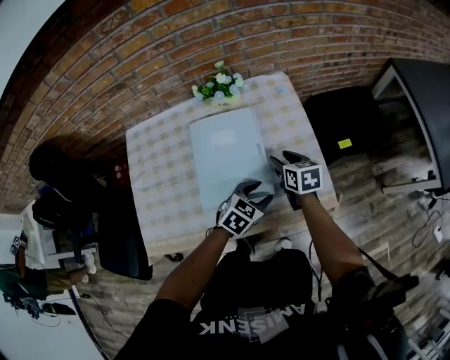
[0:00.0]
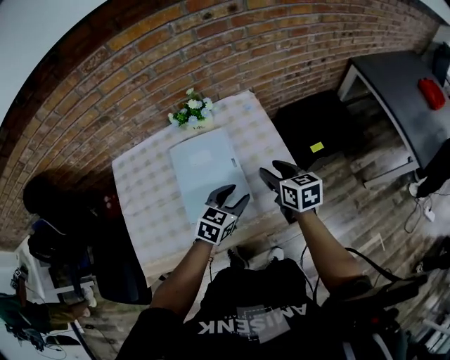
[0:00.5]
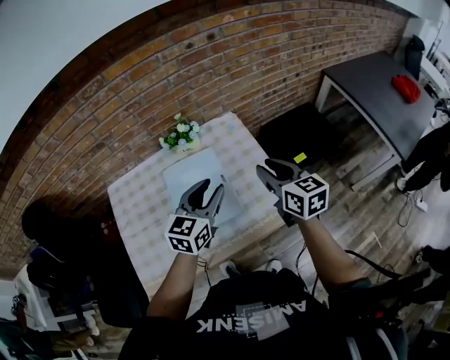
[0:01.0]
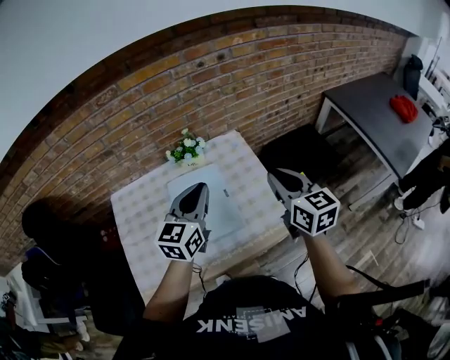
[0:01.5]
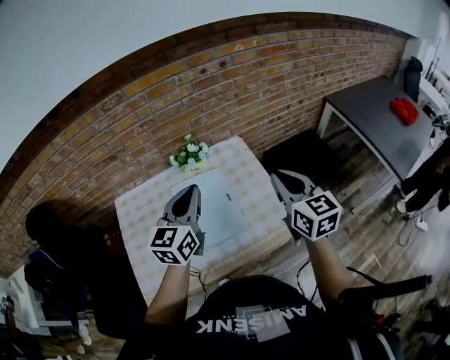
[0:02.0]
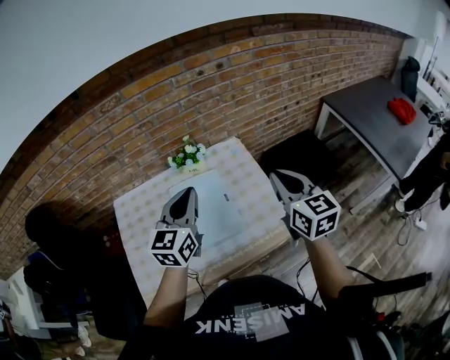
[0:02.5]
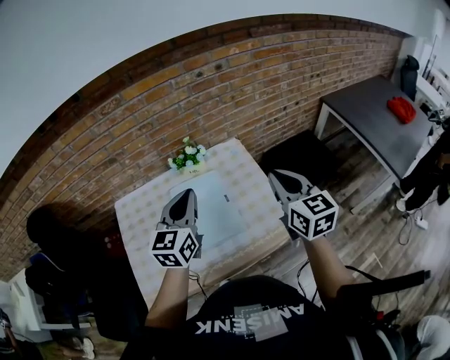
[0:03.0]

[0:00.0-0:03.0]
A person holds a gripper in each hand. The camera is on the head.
0:00.0 to 0:01.5: Both grippers travel together upward, roughly 30 cm. The right gripper rotates about 30 degrees, and closes. Meanwhile the left gripper tilts its fingers approximately 40 degrees upward, and closes.
0:01.5 to 0:03.0: There are only small adjustments of the grippers.

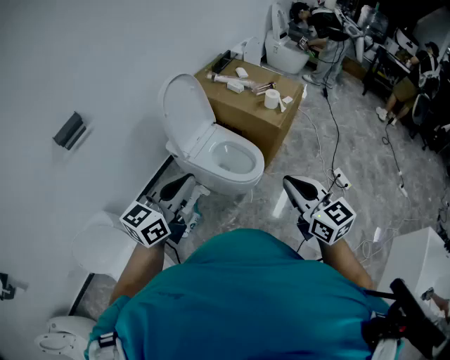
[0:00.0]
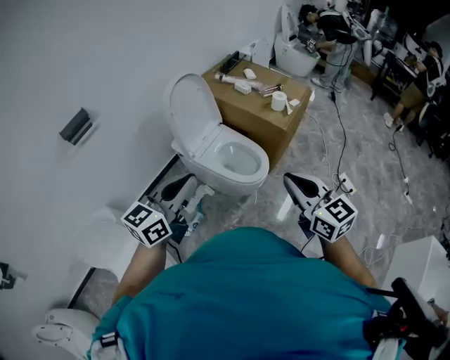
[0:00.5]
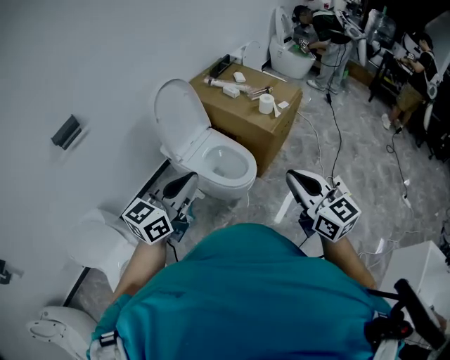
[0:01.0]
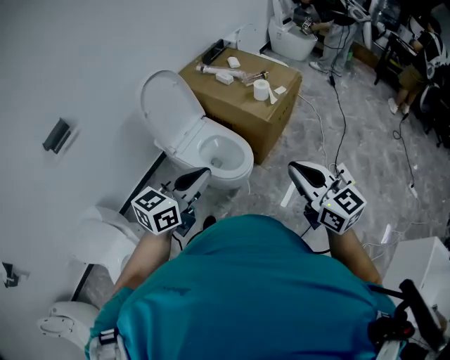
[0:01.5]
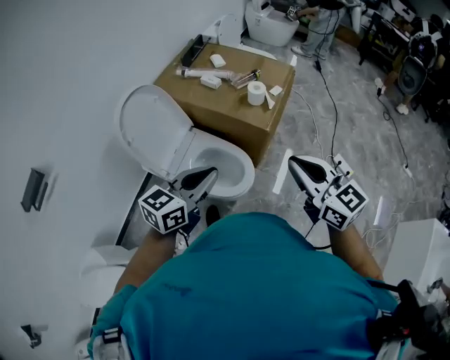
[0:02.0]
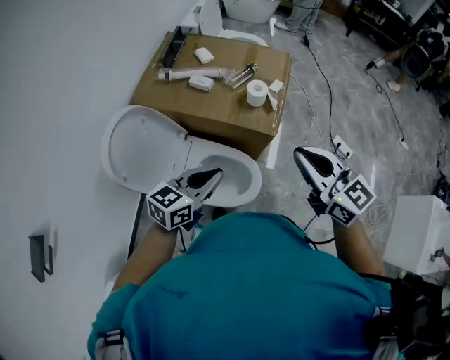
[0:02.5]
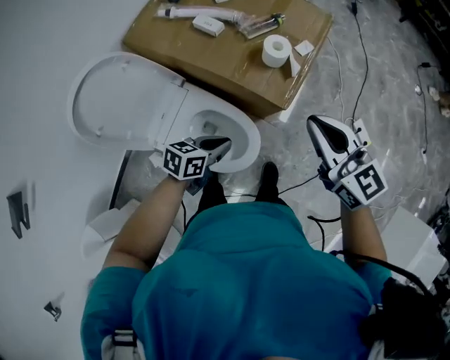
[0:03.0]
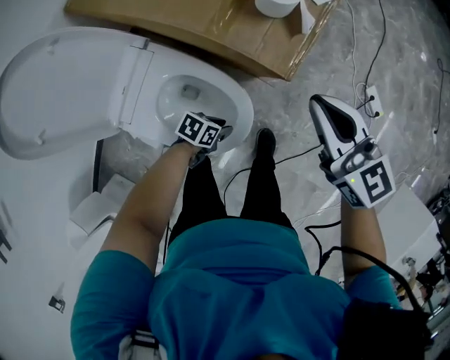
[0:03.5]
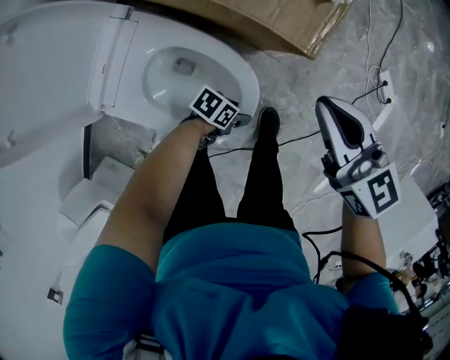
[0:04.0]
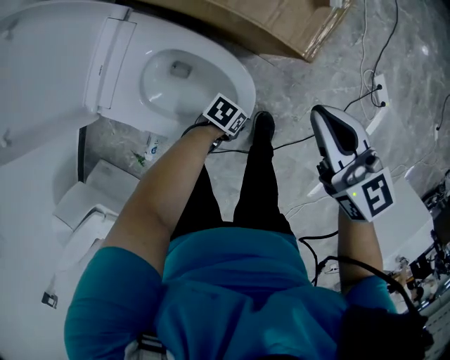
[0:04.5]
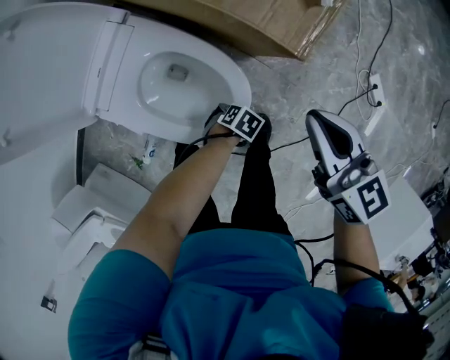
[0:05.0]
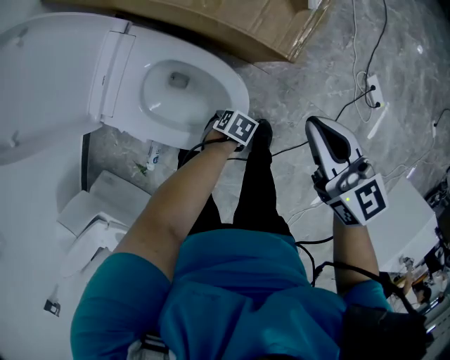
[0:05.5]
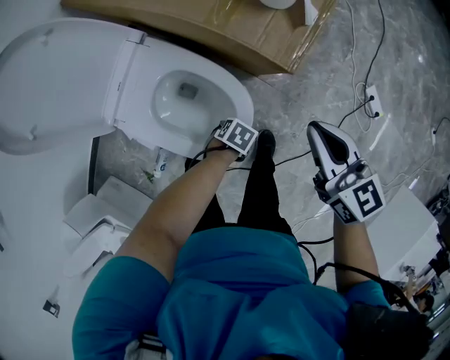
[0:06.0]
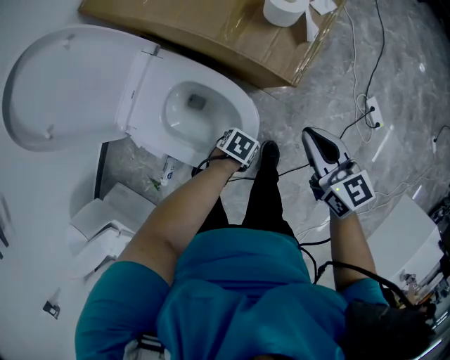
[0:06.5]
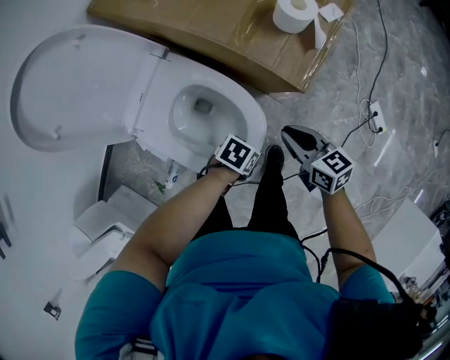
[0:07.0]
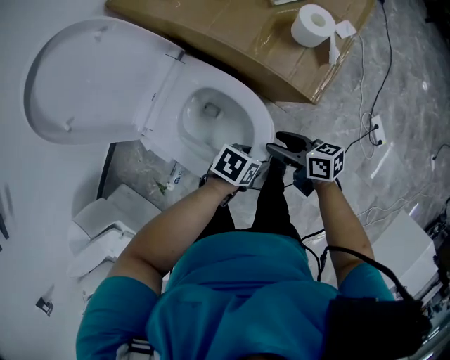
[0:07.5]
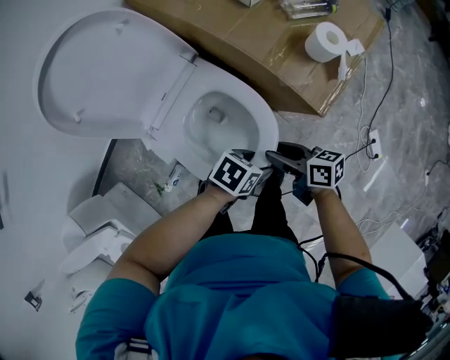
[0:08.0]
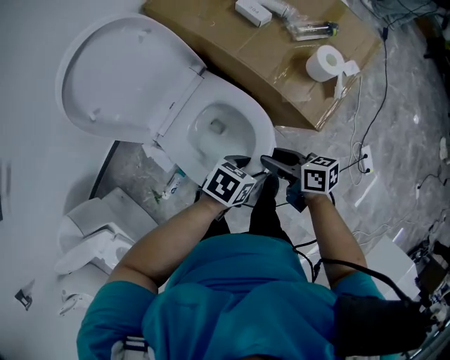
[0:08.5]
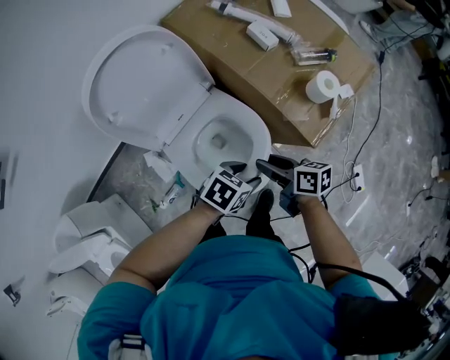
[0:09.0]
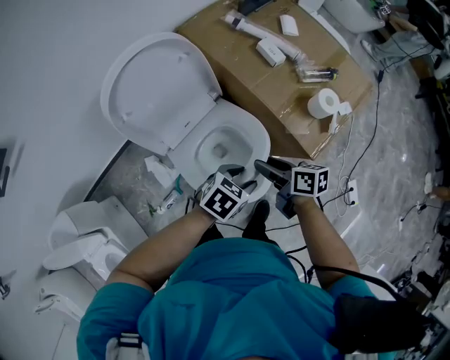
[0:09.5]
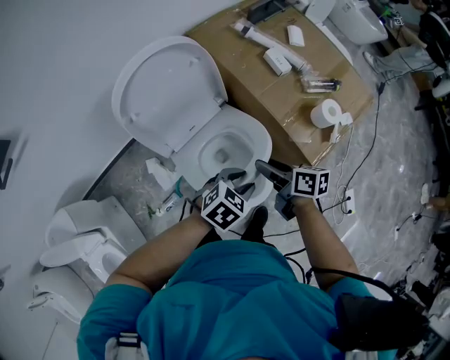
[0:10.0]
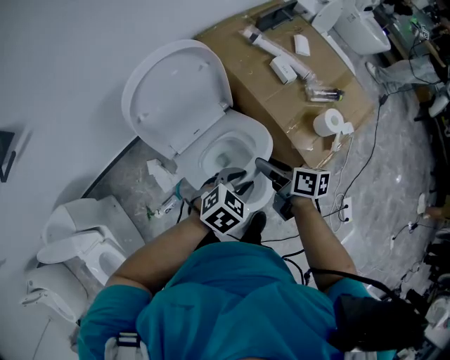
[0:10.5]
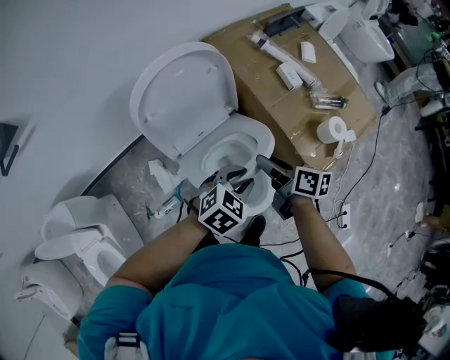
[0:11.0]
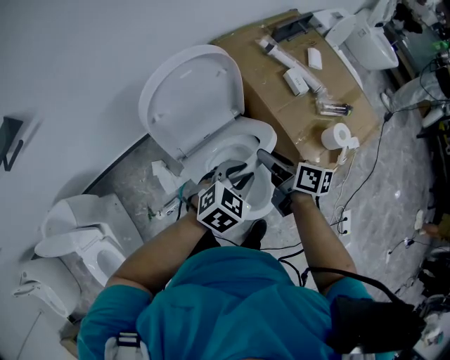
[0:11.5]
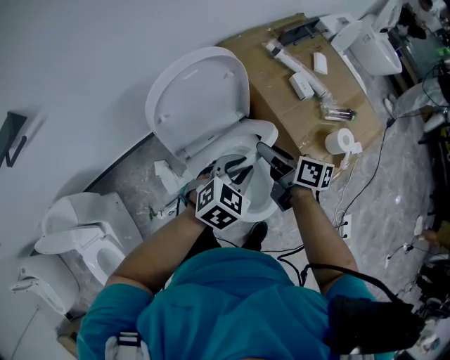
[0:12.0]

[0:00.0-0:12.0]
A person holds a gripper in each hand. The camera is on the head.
0:00.0 to 0:02.0: The left gripper heads forward and to the right, covering some 30 cm, while the right gripper goes roughly 25 cm forward.
0:02.0 to 0:04.0: The left gripper is displaced downward by some 70 cm, changes its angle by approximately 70 degrees, and opens its fingers; the right gripper goes roughly 40 cm downward.
0:04.0 to 0:06.0: The left gripper turns by roughly 20 degrees; the right gripper changes place by about 5 cm.
0:06.0 to 0:08.0: The left gripper heads upward, covering approximately 20 cm, and swivels about 20 degrees, while the right gripper ends up approximately 20 cm from where it was, turns by approximately 40 degrees, and opens.
0:08.0 to 0:10.0: Both grippers travel together upward, approximately 15 cm. The left gripper changes its angle by some 30 degrees, and closes.
0:10.0 to 0:12.0: The left gripper moves to the left, forward and upward, approximately 15 cm, while the right gripper travels forward, to the left and upward by approximately 15 cm.

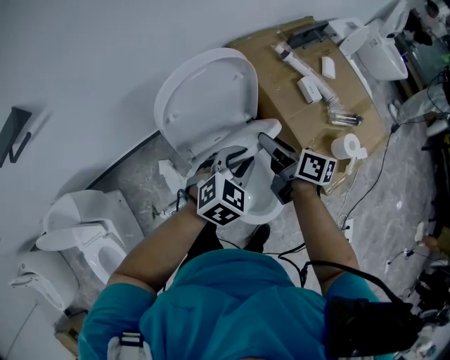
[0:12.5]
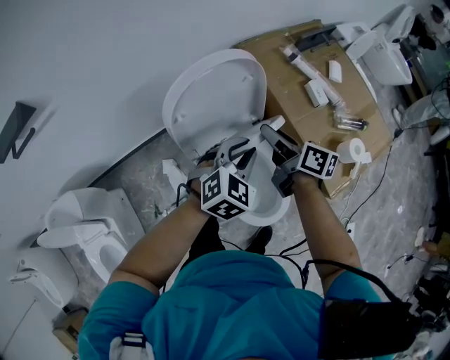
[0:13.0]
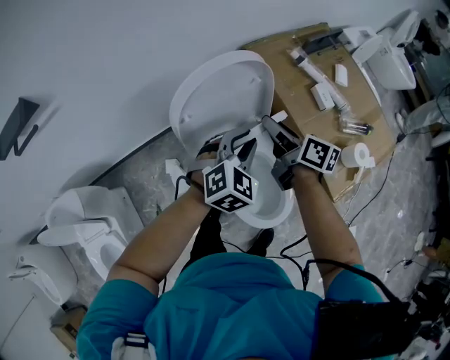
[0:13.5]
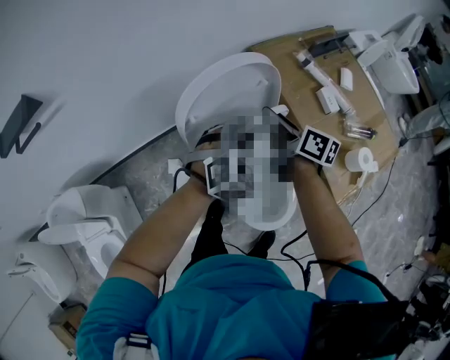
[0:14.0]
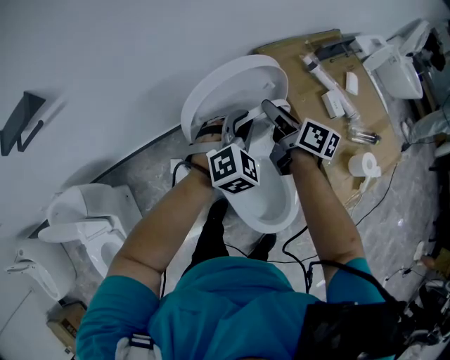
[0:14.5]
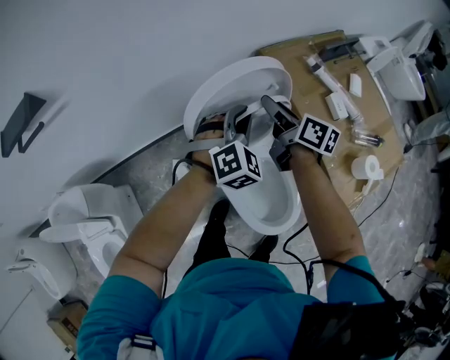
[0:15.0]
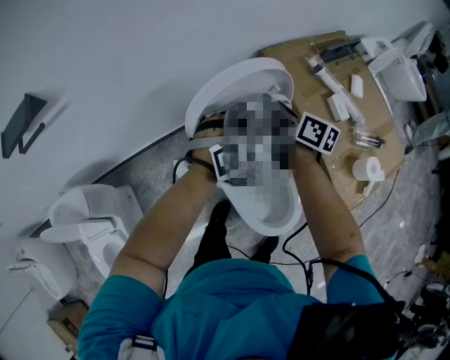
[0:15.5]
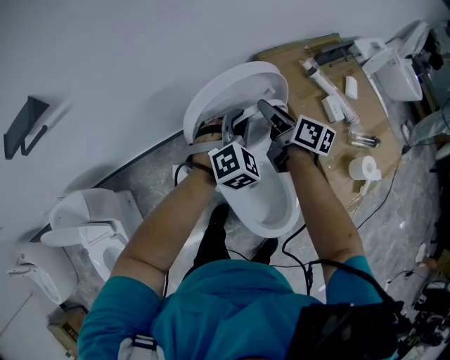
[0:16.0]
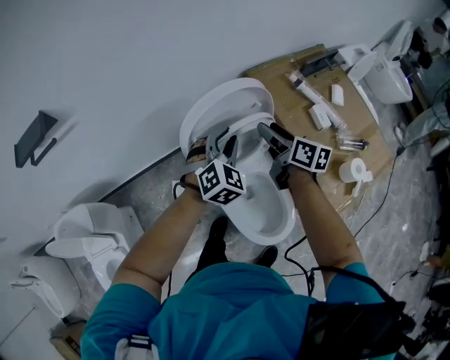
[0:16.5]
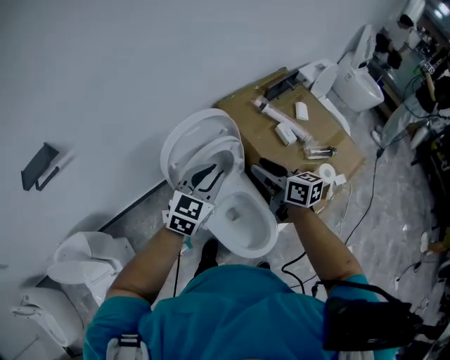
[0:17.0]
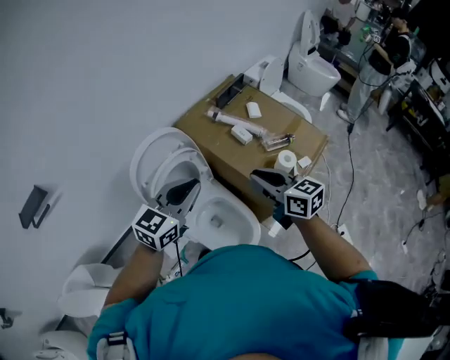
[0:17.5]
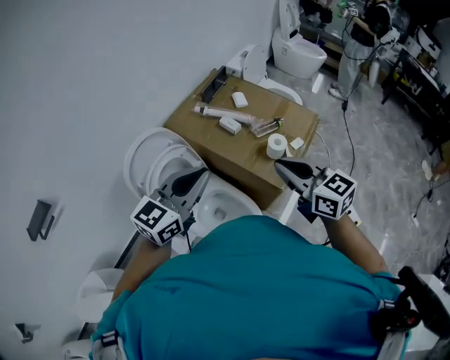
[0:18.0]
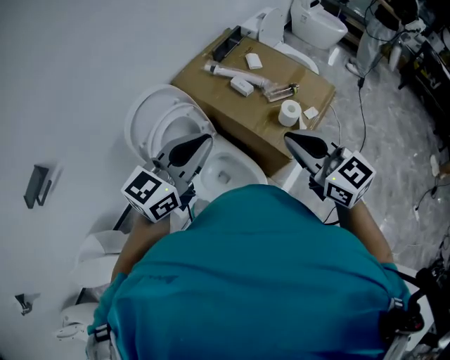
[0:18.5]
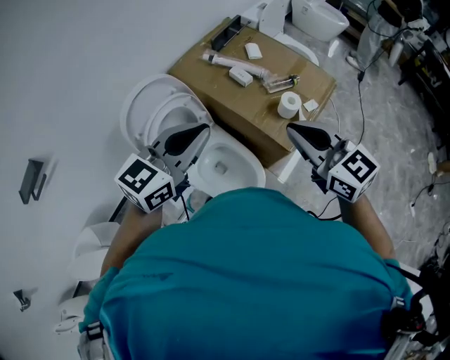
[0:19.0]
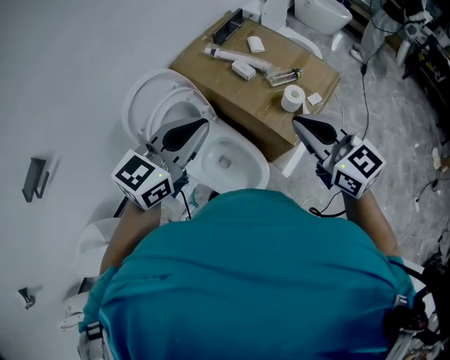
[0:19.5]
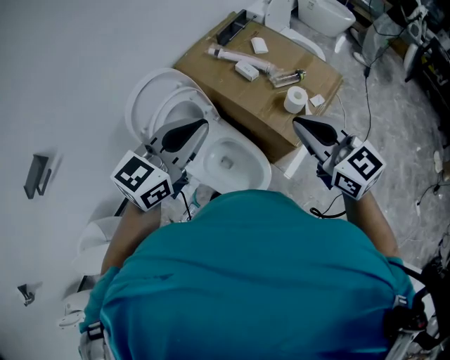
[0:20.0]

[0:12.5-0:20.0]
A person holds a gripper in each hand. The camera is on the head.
0:12.5 to 0:14.5: The two grippers go roughly 15 cm forward and to the left. The left gripper rotates about 30 degrees.
0:14.5 to 0:16.5: The grippers make only small movements.
0:16.5 to 0:18.0: The left gripper ends up approximately 40 cm from where it was, and changes its angle by roughly 60 degrees. Meanwhile the right gripper moves roughly 50 cm, rotates about 30 degrees, and closes.
0:18.0 to 0:20.0: There are only small adjustments of the grippers.

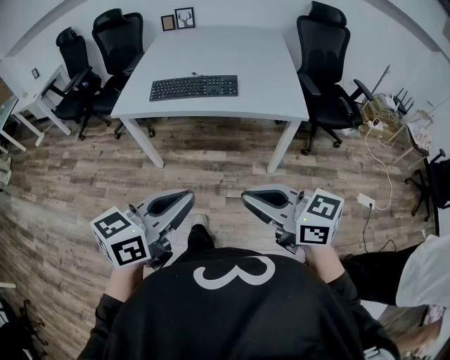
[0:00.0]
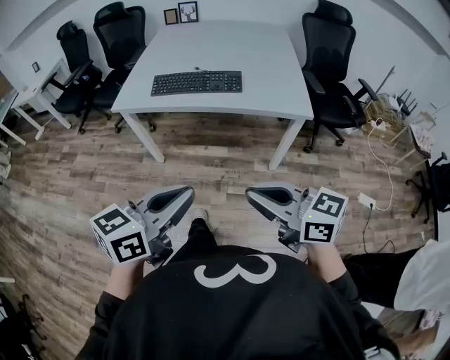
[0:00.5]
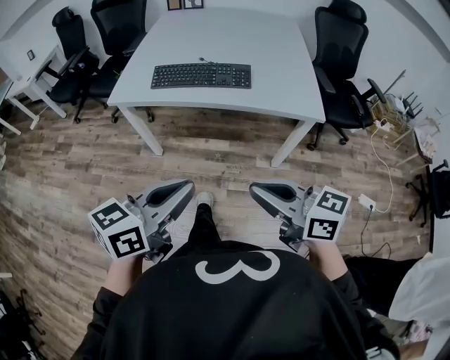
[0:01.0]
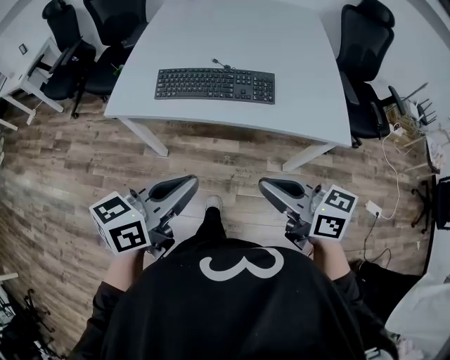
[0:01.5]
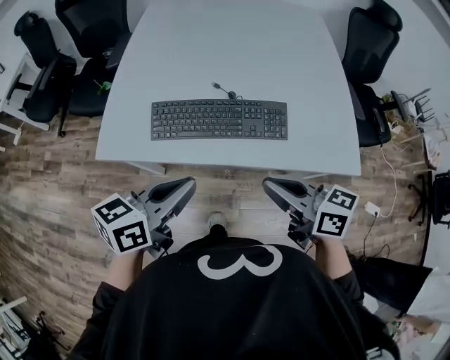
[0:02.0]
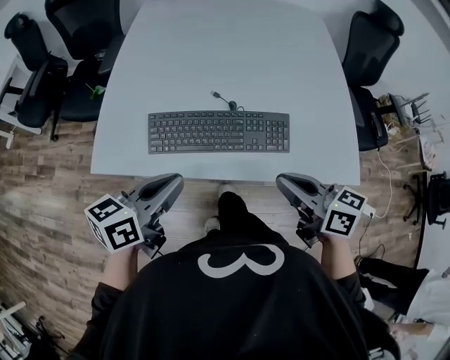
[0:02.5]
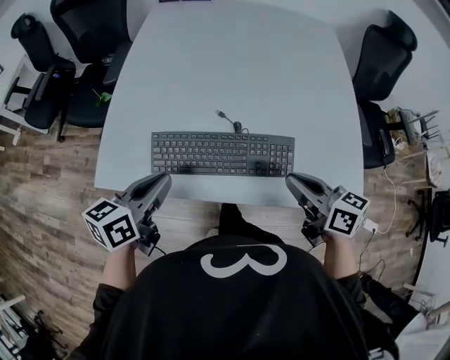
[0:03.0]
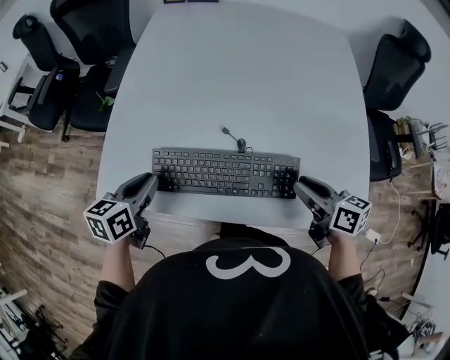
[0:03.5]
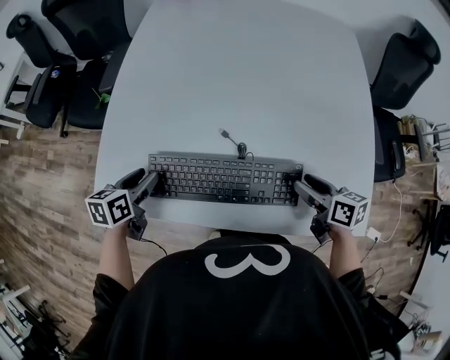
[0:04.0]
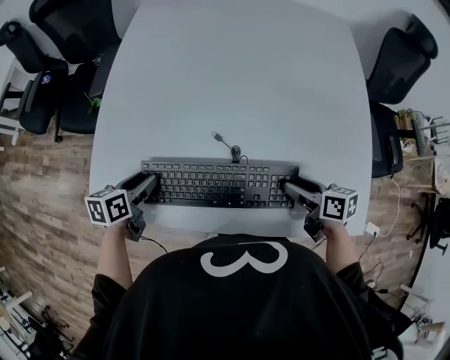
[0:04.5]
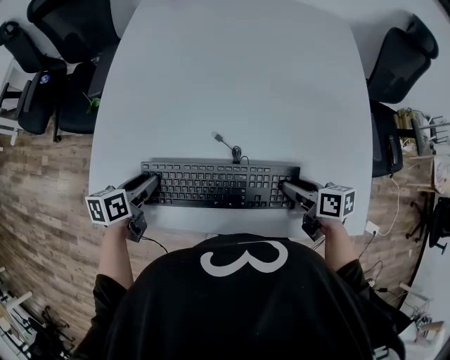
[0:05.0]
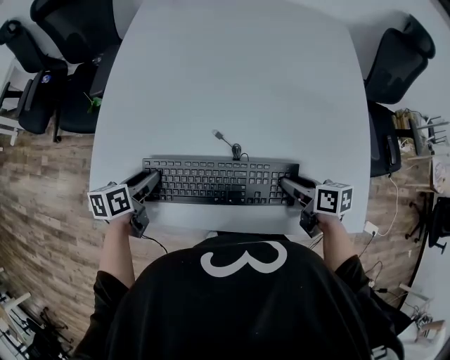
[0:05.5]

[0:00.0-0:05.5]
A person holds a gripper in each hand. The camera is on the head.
0:00.0 to 0:02.0: The pair of grippers is taken forward, about 40 cm. The right gripper turns by some 20 degrees.
0:02.0 to 0:03.5: The left gripper heads forward, to the left and downward, covering roughly 25 cm, and rotates about 30 degrees. Meanwhile the right gripper goes some 20 cm forward and to the right, and opens its fingers.
0:03.5 to 0:05.5: The grippers both shift downward by about 10 cm. The left gripper opens.
